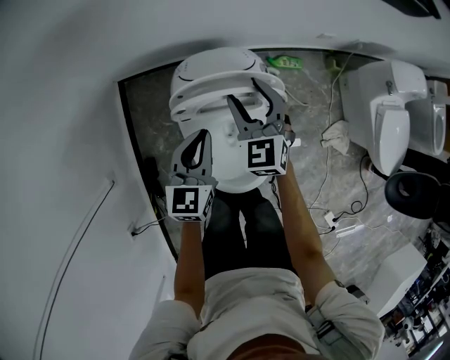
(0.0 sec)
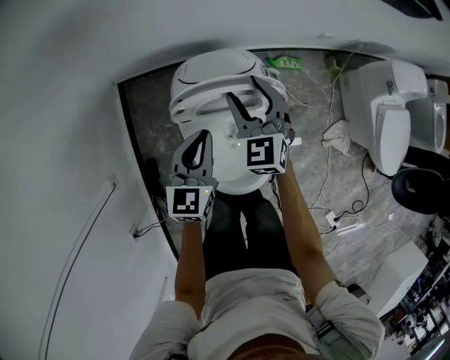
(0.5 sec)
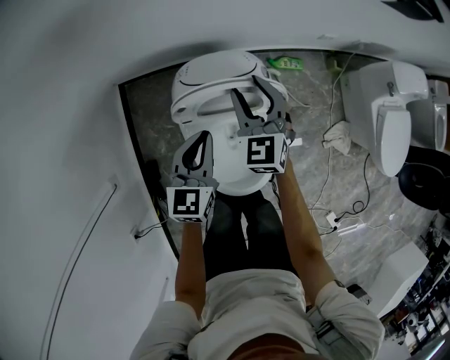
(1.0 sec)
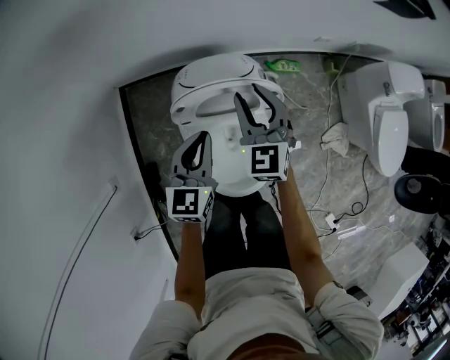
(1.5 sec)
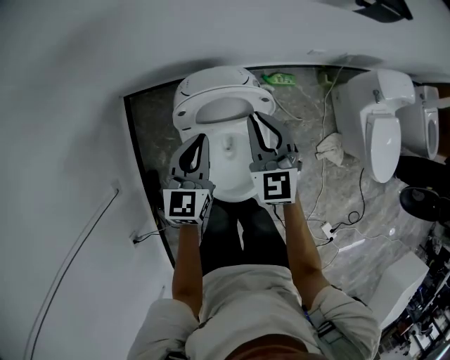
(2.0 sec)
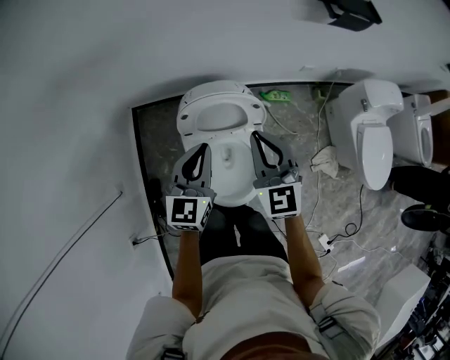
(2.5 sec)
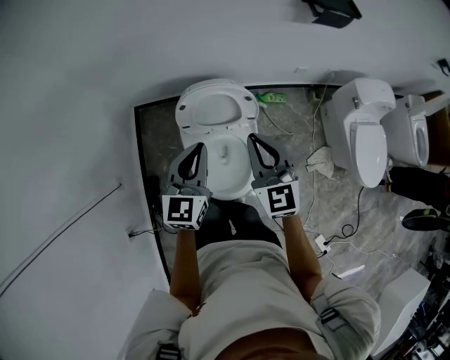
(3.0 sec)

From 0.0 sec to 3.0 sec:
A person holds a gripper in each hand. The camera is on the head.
From 0.0 sec to 1.5 sec: The grippers move only a little.
From 1.5 sec to 3.0 sec: The right gripper heads backward and upward, covering some 25 cm, and closes up. Meanwhile the left gripper travels upward and backward by about 20 cm.

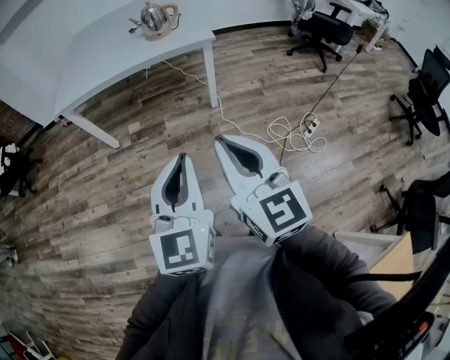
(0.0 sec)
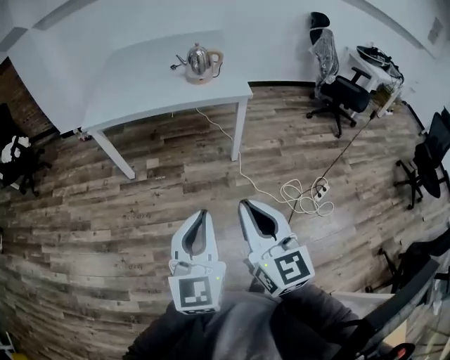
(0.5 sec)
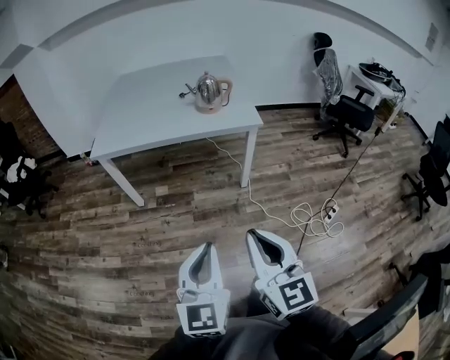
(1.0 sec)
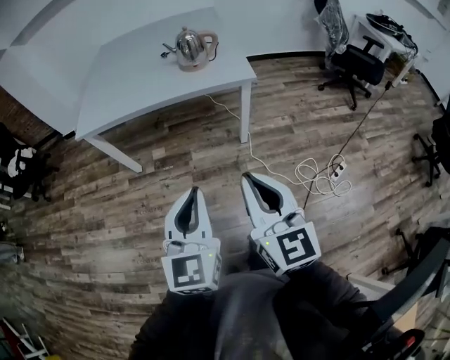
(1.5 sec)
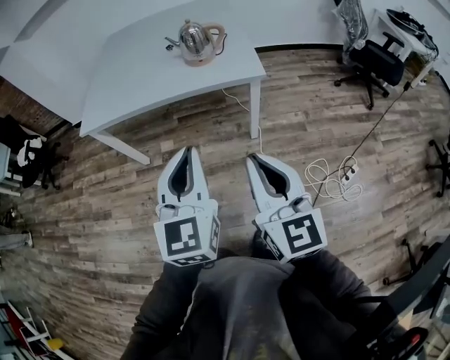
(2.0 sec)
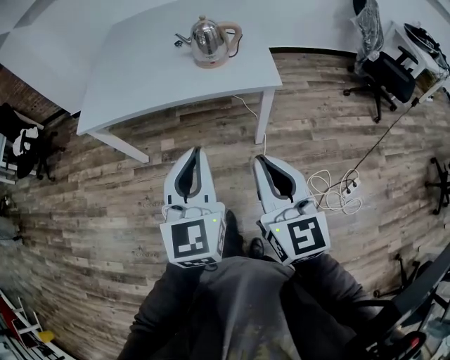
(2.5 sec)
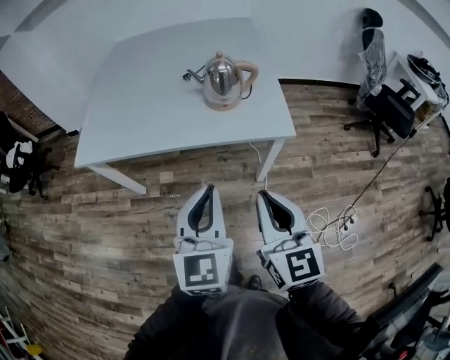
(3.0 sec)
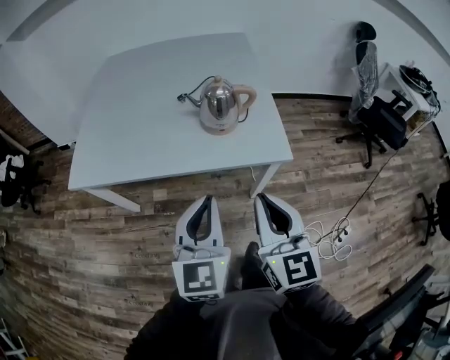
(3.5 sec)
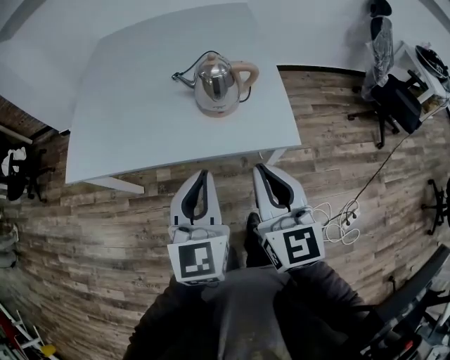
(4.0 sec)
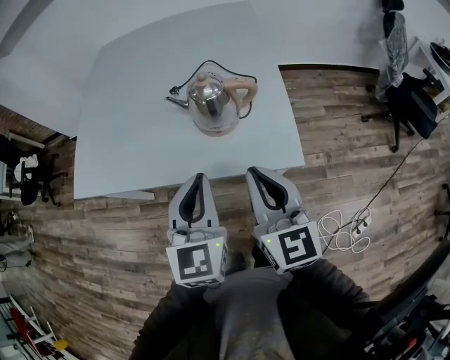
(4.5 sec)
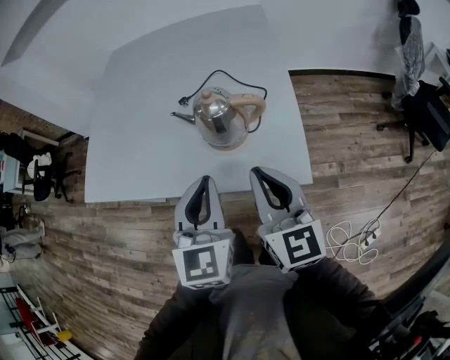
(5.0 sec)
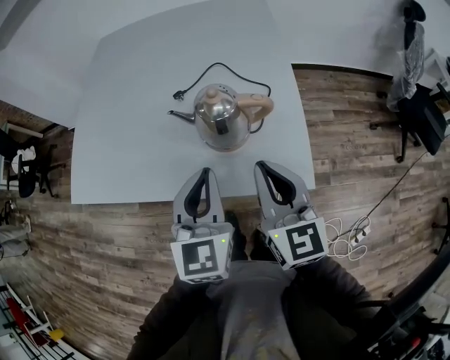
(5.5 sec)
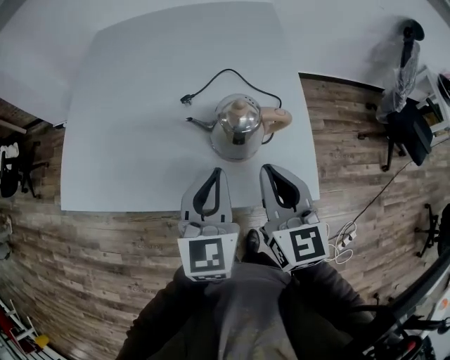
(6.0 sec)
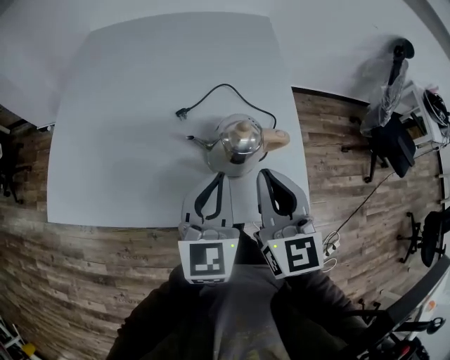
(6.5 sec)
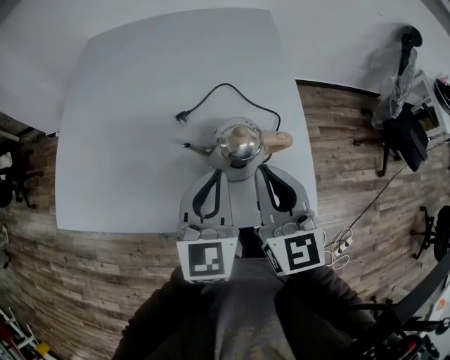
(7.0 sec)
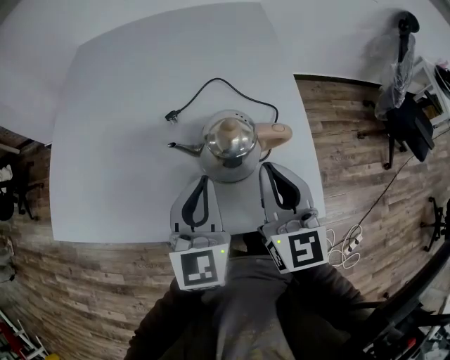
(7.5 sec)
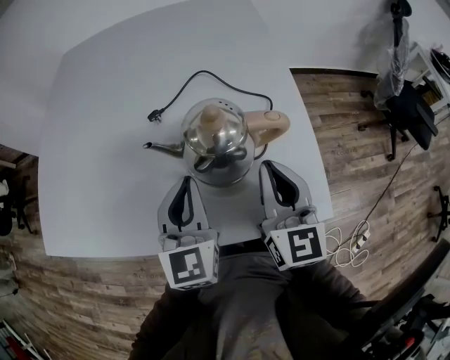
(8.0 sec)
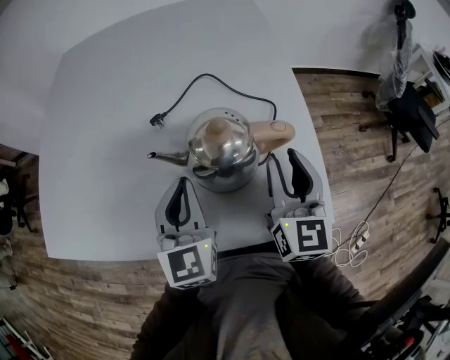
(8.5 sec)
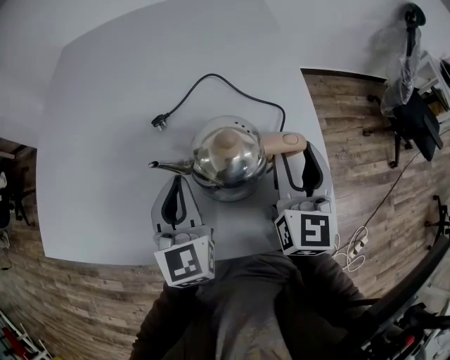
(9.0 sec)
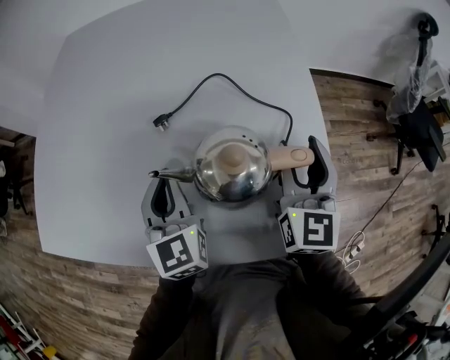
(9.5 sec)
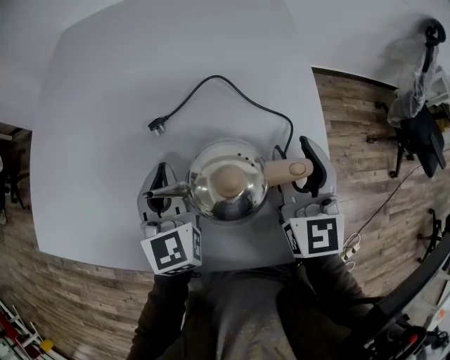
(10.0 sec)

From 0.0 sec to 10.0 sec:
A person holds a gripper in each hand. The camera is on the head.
From 0.0 sec to 2.0 sec: The two grippers go approximately 25 cm forward.
From 2.0 sec to 4.0 sec: Both grippers travel together forward, about 35 cm.
From 4.0 sec to 6.0 sec: Both grippers travel together forward, some 20 cm.
From 6.0 sec to 8.0 sec: Both grippers move downward and forward, roughly 15 cm.
From 8.0 sec to 10.0 sec: The right gripper travels forward by roughly 10 cm, and opens. The left gripper is displaced forward and to the left by some 10 cm.

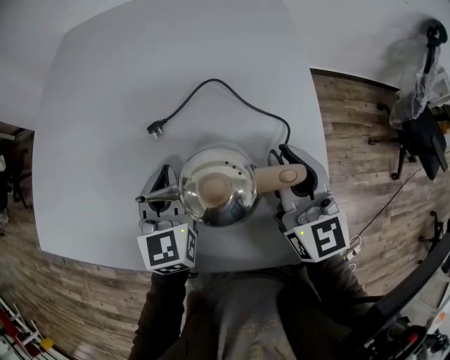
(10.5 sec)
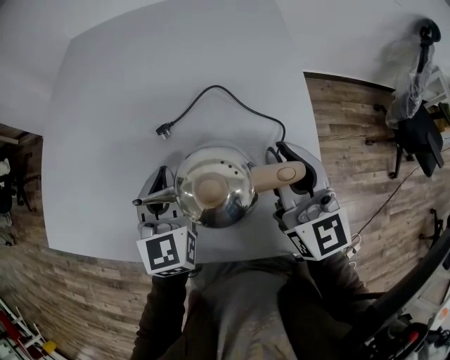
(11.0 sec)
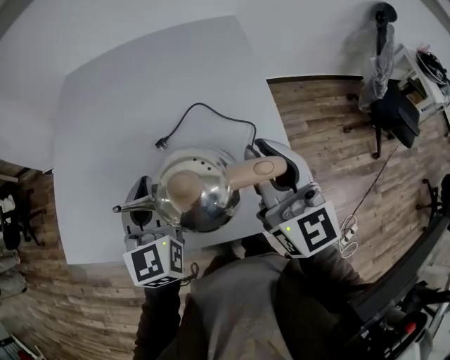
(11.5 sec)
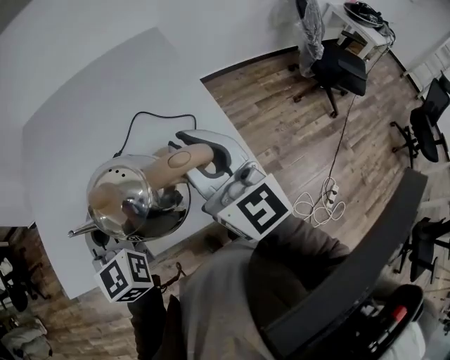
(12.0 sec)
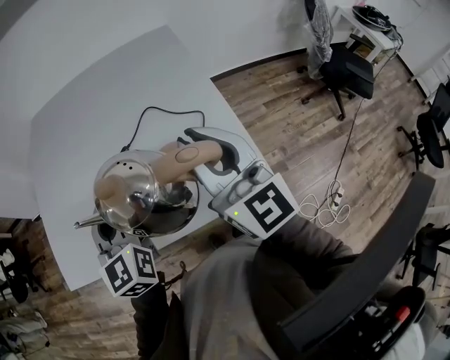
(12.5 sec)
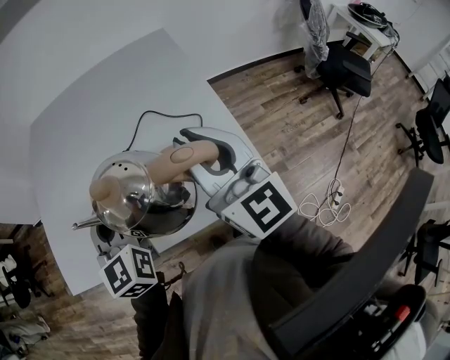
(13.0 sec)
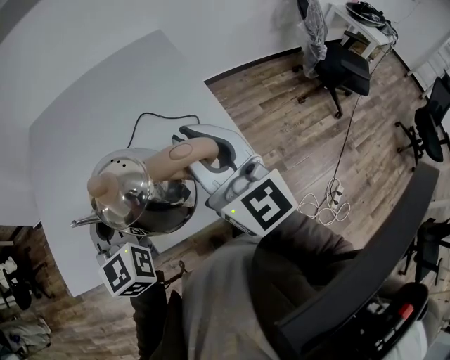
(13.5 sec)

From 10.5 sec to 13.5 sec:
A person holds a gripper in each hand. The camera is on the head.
From 10.5 sec to 12.0 sec: The two grippers go roughly 25 cm upward and backward.
From 12.0 sec to 13.5 sec: The grippers stay close to where they were, moving slightly.

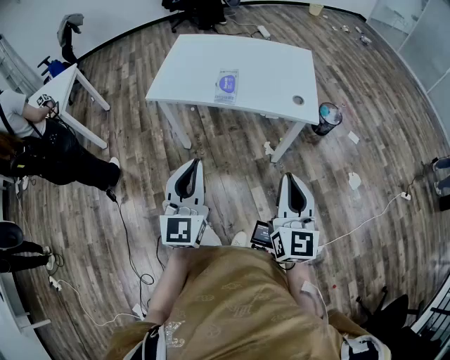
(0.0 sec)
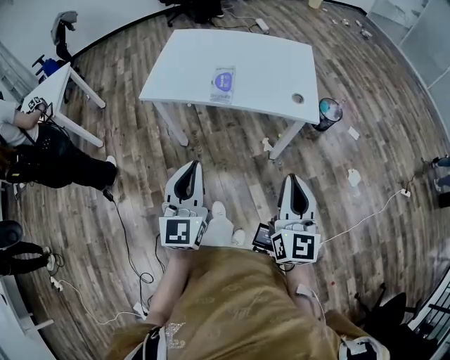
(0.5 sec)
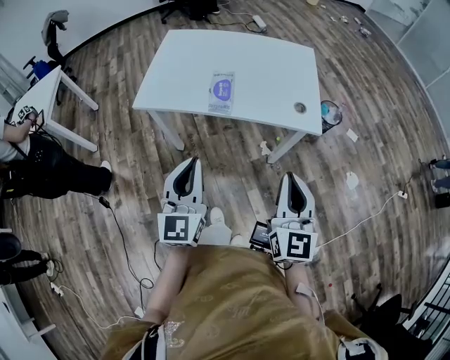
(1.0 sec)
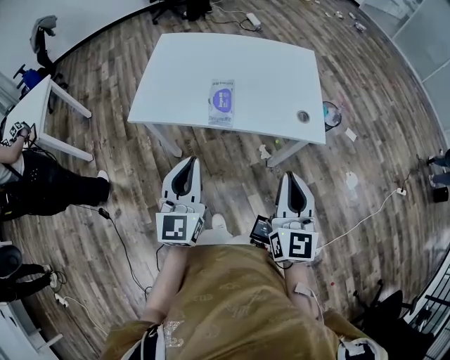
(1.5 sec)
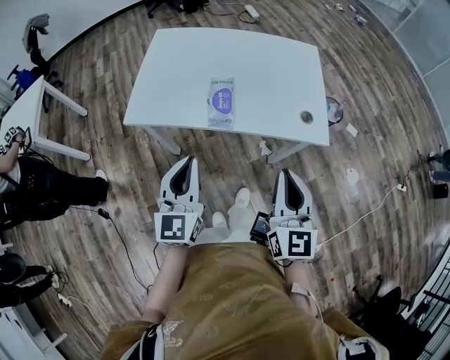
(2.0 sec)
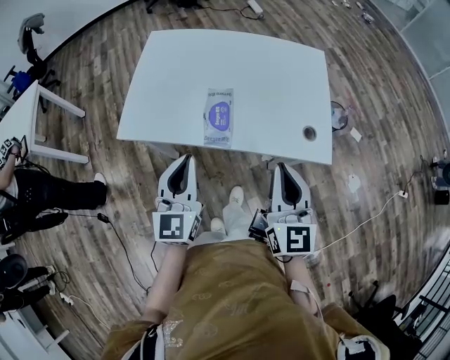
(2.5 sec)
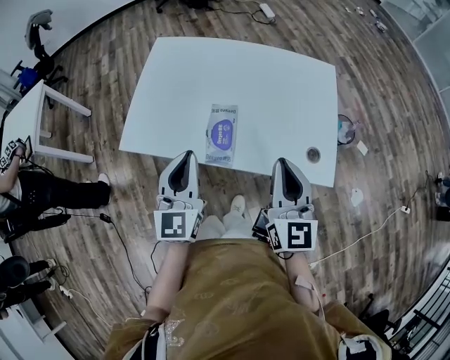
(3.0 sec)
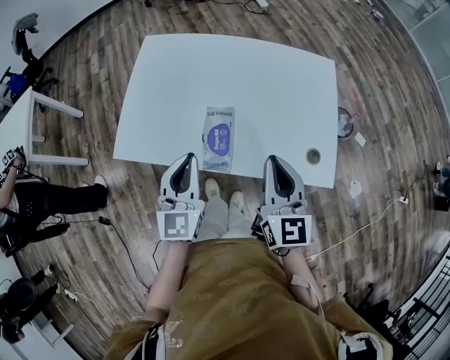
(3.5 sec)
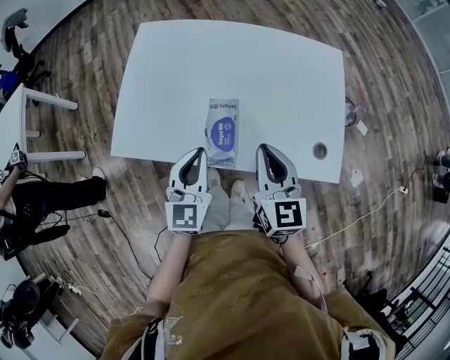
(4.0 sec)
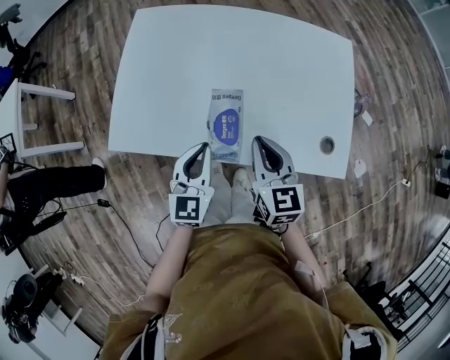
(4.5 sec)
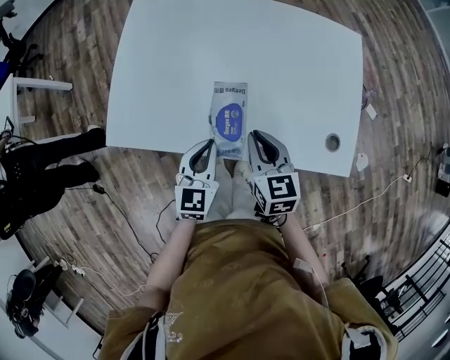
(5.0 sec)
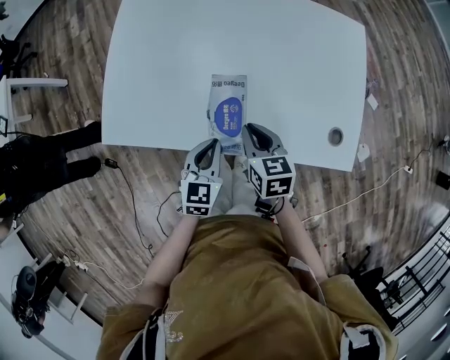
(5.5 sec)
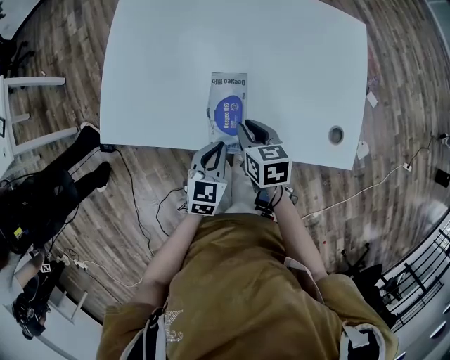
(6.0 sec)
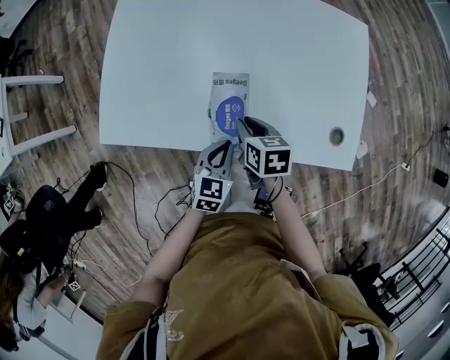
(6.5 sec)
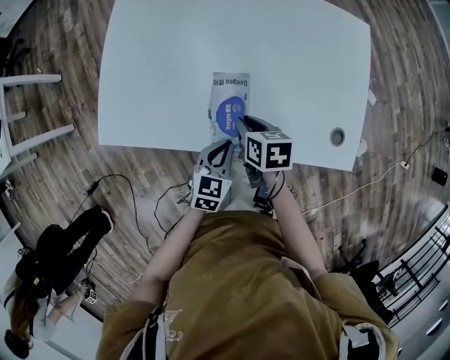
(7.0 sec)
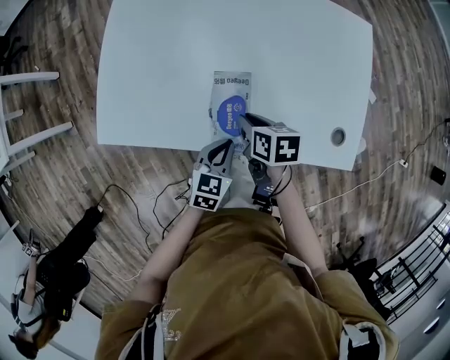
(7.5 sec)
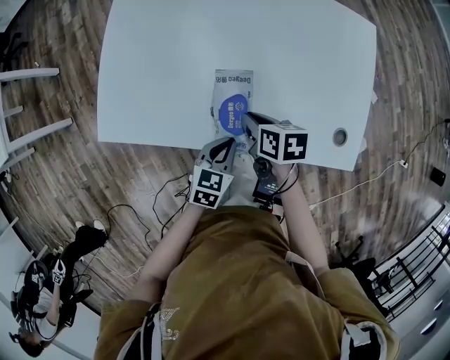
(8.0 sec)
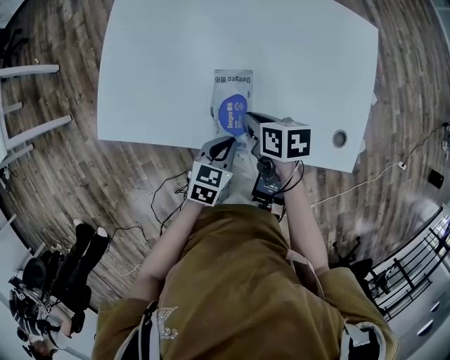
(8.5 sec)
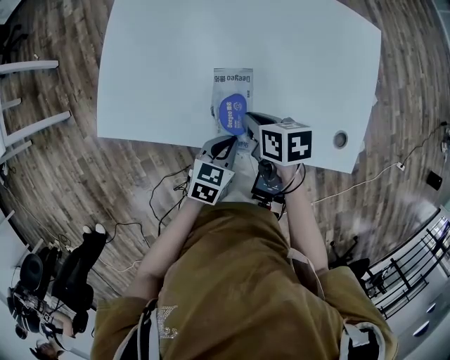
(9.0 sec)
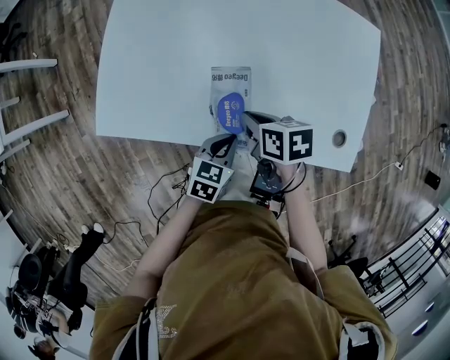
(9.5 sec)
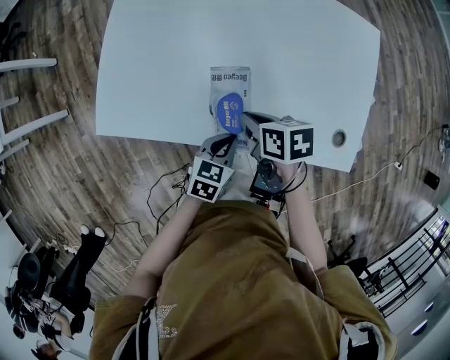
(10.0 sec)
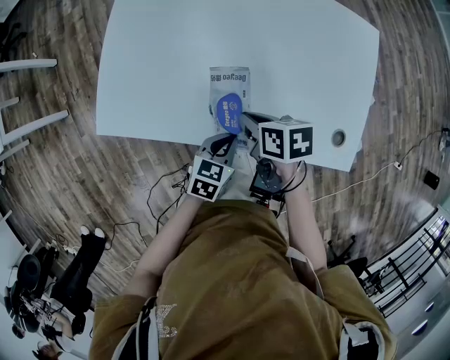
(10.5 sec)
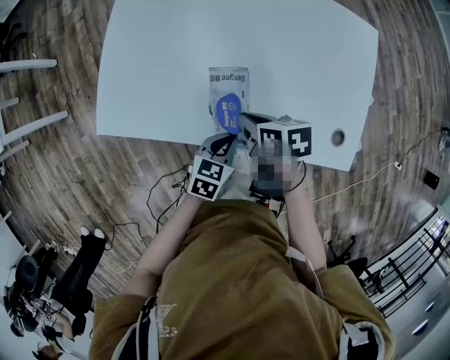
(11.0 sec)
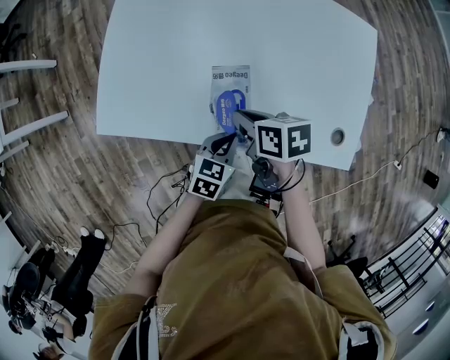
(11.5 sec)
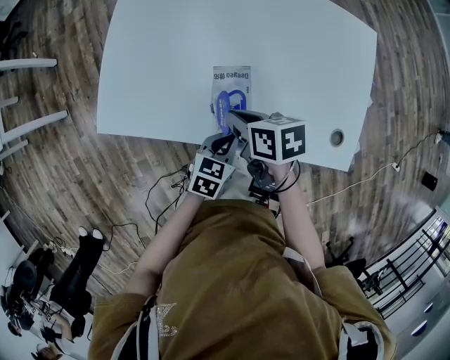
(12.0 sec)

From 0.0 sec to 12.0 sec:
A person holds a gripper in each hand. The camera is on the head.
From 0.0 sec to 2.0 sec: Both grippers travel together forward, approximately 20 cm.
From 2.0 sec to 4.0 sec: The right gripper shifts some 25 cm forward. The left gripper goes some 25 cm forward and downward.
From 4.0 sec to 6.0 sec: Both grippers move downward, some 20 cm. The right gripper angles its fingers downward, by approximately 30 degrees, while the left gripper rotates about 30 degrees.
From 6.0 sec to 8.0 sec: The grippers stay close to where they were, moving slightly.
From 8.0 sec to 10.0 sec: The grippers make only small movements.
From 10.0 sec to 12.0 sec: The right gripper ends up some 5 cm from where it was.
